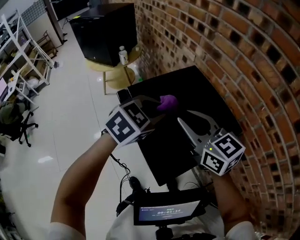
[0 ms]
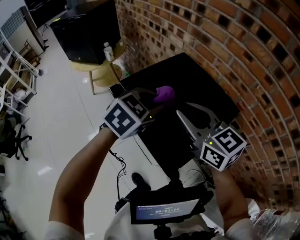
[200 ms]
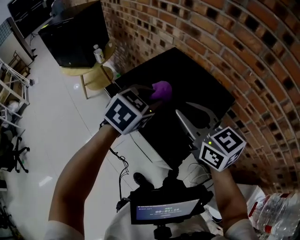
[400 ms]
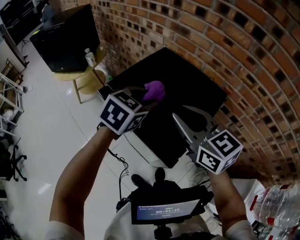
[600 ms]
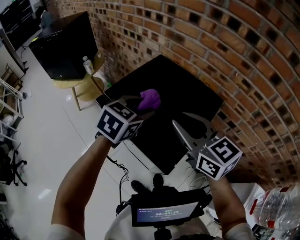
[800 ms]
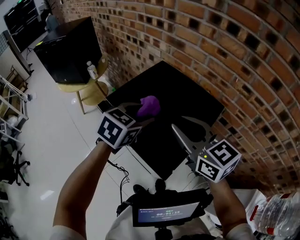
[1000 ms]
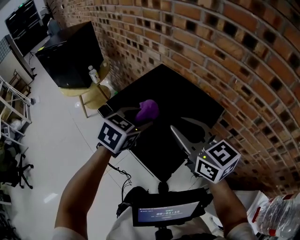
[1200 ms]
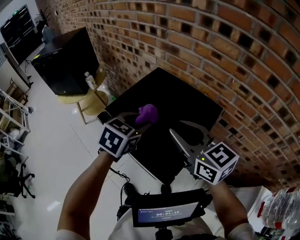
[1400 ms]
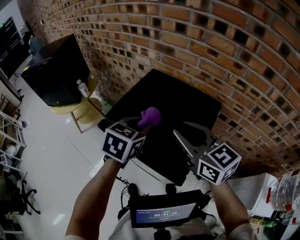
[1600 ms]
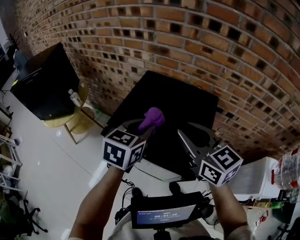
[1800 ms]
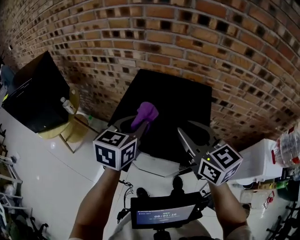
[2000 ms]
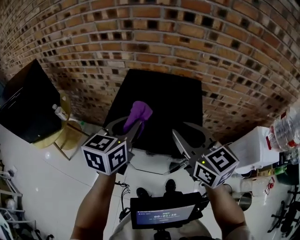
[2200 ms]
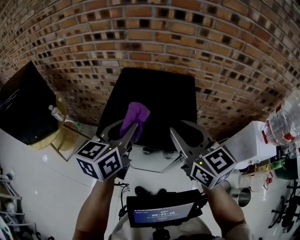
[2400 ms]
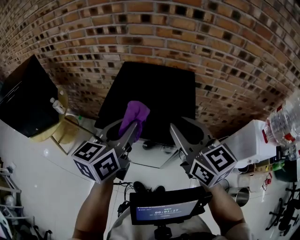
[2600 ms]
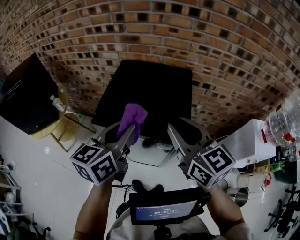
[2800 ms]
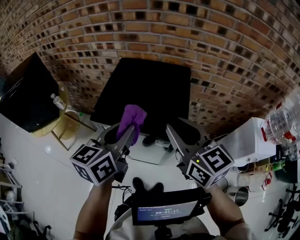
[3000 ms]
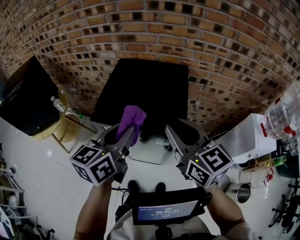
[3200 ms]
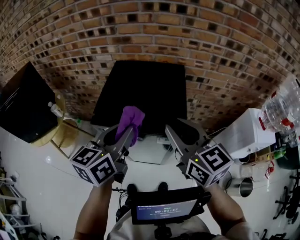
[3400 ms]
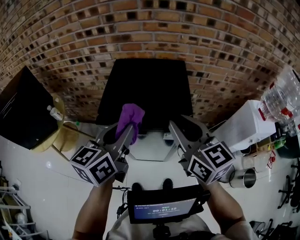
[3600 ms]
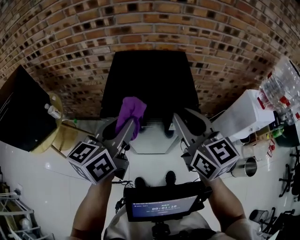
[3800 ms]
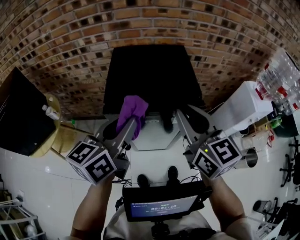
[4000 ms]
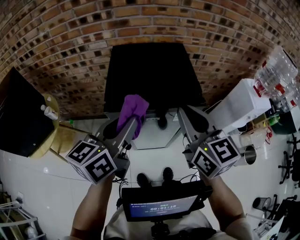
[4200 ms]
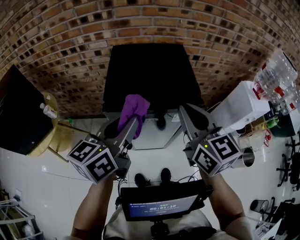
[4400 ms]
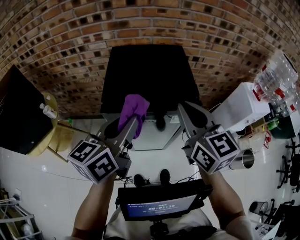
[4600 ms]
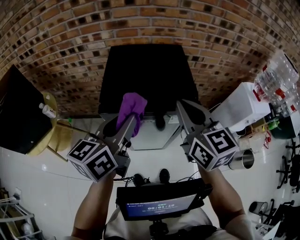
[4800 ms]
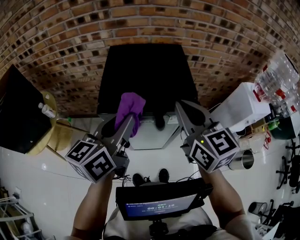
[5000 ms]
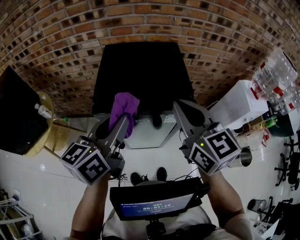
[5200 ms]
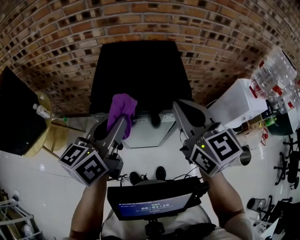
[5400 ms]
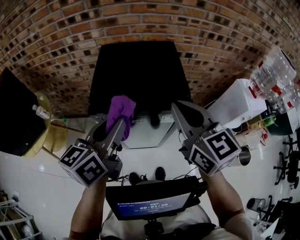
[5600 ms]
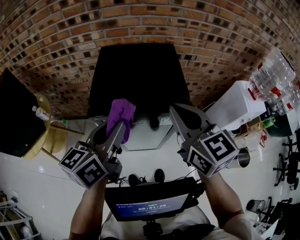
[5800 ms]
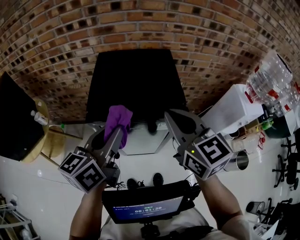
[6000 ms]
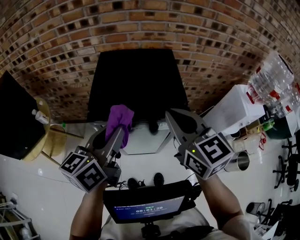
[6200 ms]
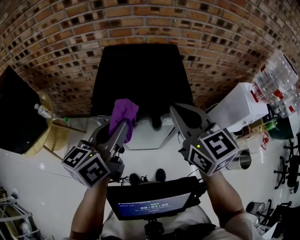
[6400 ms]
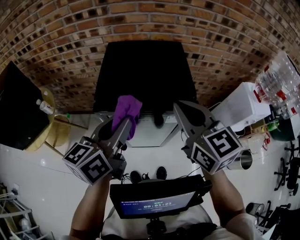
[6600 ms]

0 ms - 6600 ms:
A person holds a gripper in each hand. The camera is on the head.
0 ms - 1600 ms: The right gripper changes its angle by about 30 degrees. Meanwhile the left gripper opens, then closes once more.
1600 ms - 3200 ms: The right gripper moves roughly 15 cm, and rotates approximately 30 degrees; the left gripper shifts by some 15 cm, and changes its angle by roughly 30 degrees.
3200 ms - 5000 ms: The left gripper shifts approximately 5 cm to the left.
5000 ms - 6600 ms: The grippers move only a little.

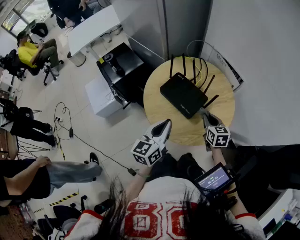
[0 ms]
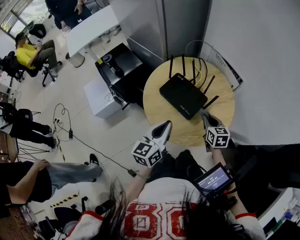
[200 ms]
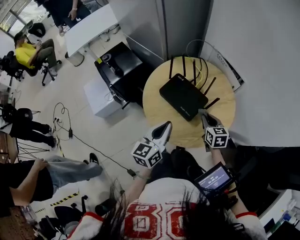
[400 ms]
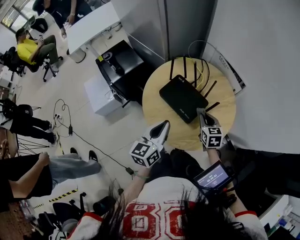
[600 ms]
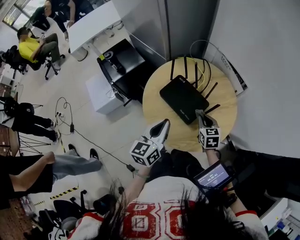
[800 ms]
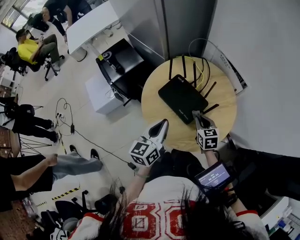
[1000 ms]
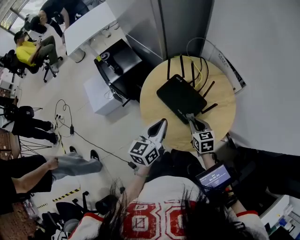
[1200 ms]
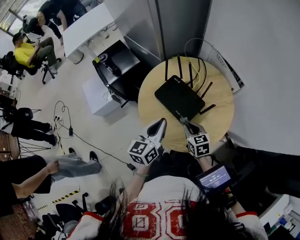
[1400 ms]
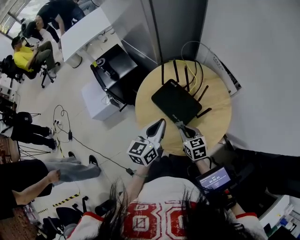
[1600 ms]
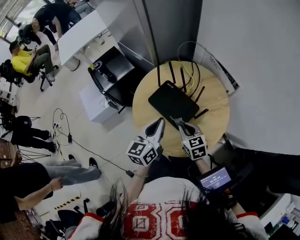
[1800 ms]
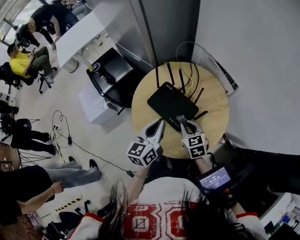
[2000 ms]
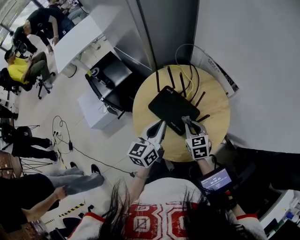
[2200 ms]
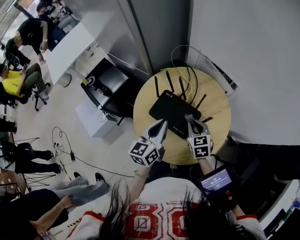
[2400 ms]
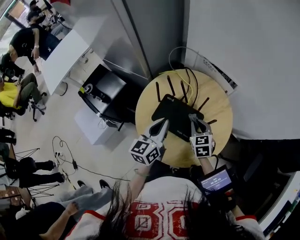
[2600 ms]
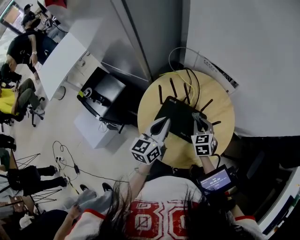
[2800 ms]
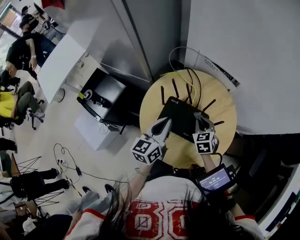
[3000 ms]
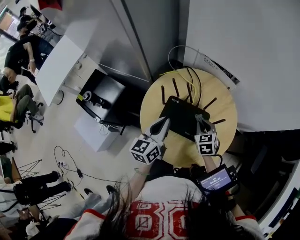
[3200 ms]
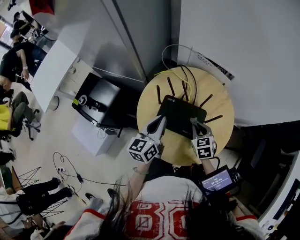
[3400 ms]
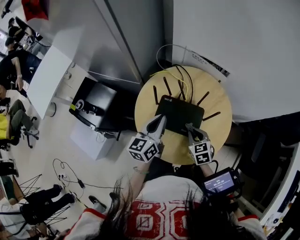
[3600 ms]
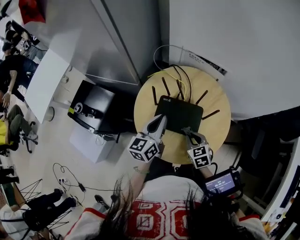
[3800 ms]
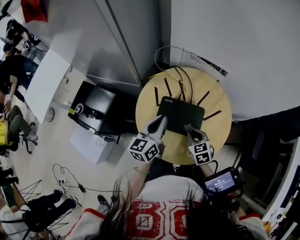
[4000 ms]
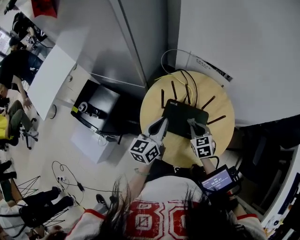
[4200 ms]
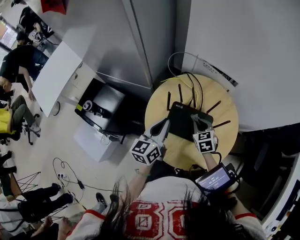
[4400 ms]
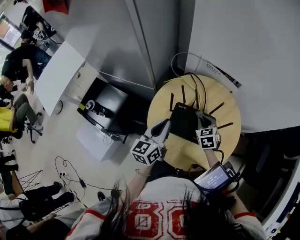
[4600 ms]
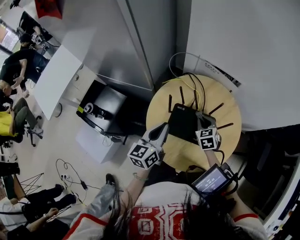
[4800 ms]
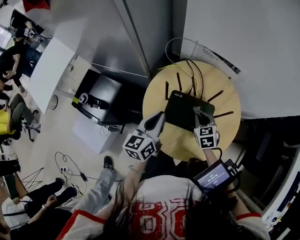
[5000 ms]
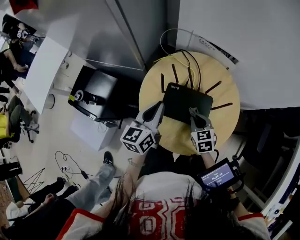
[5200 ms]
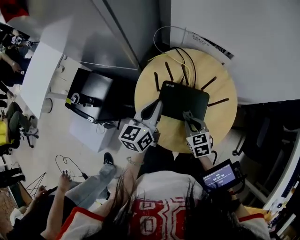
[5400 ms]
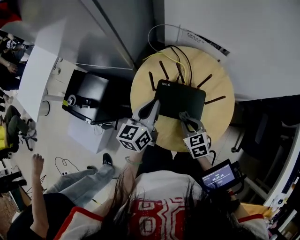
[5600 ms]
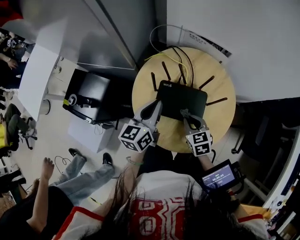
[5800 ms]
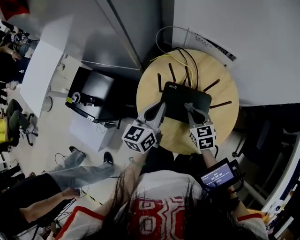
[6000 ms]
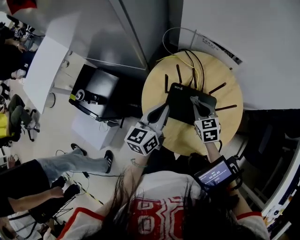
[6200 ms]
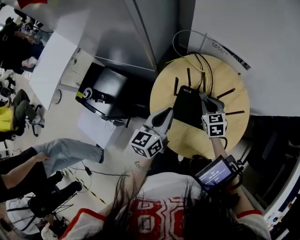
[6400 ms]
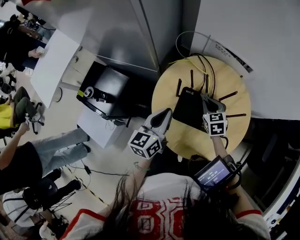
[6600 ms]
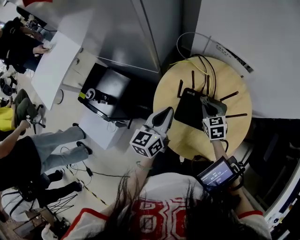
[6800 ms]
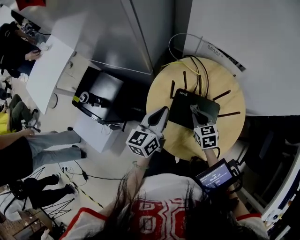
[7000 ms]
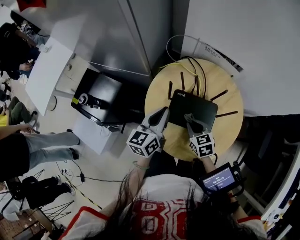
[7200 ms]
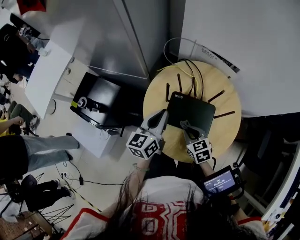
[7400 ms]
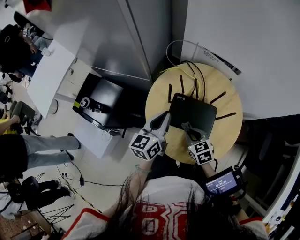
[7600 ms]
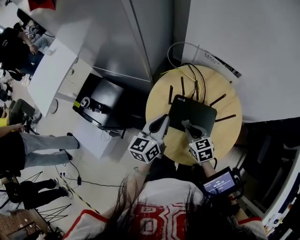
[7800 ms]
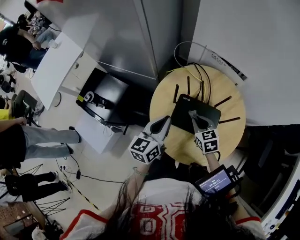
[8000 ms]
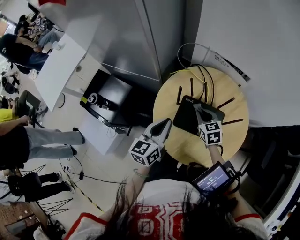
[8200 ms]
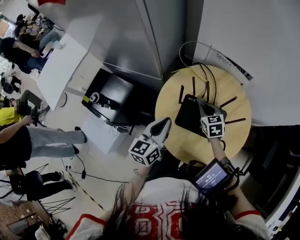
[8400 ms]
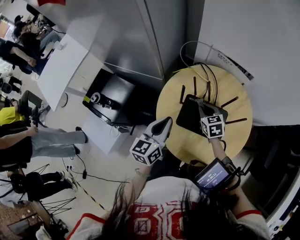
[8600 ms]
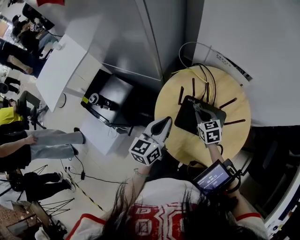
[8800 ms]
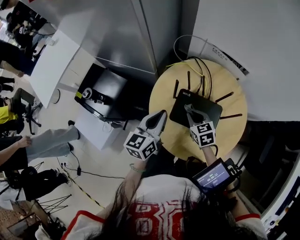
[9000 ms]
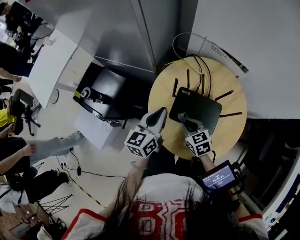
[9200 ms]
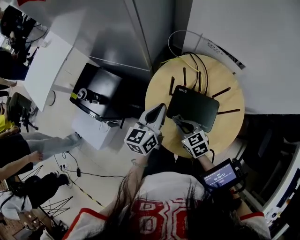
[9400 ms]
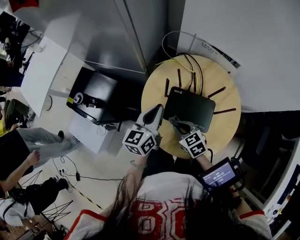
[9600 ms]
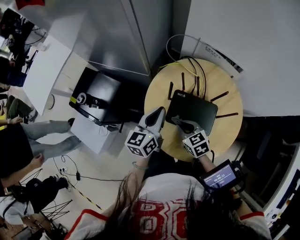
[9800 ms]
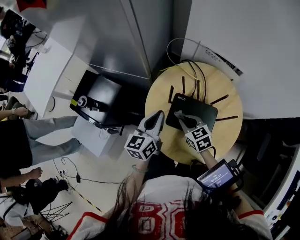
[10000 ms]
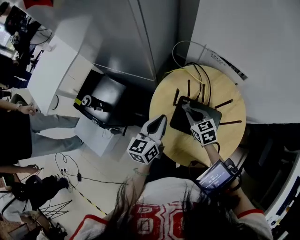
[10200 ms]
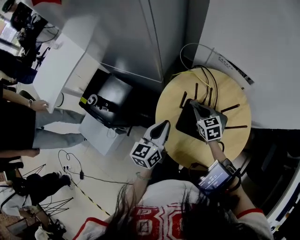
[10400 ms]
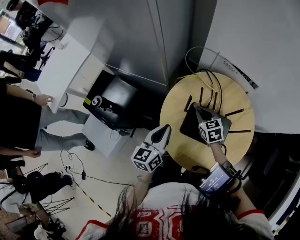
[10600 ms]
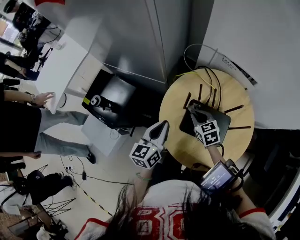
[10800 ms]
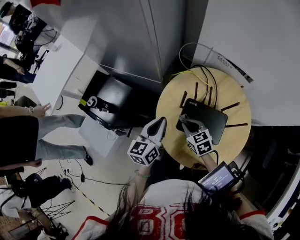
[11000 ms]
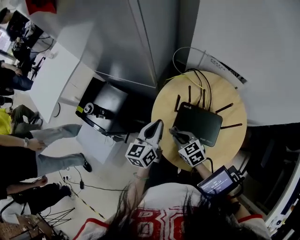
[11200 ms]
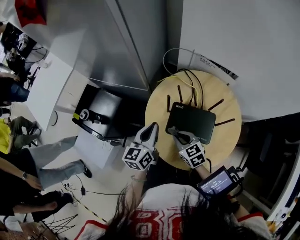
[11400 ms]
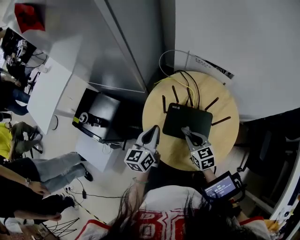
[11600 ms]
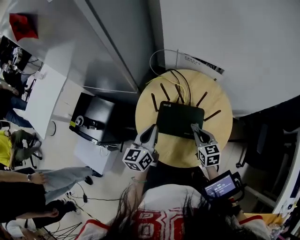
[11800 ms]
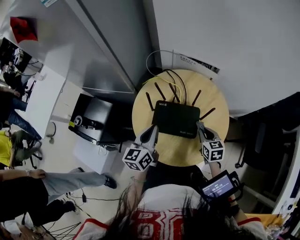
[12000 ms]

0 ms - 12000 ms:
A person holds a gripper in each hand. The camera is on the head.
0 ms - 1600 ms: The left gripper is displaced forward by approximately 5 cm, while the right gripper travels to the left by approximately 10 cm.
1600 ms - 3000 ms: The right gripper shifts by some 15 cm, and turns by roughly 40 degrees, while the left gripper ends up approximately 10 cm from where it was, and turns by roughly 20 degrees.
3000 ms - 4400 ms: The right gripper goes backward and returns, approximately 10 cm each way.
6000 ms - 7600 ms: The right gripper ends up some 5 cm from where it was.
7600 ms - 9000 ms: The right gripper shifts some 10 cm forward.
9000 ms - 10400 ms: The right gripper is displaced forward by approximately 5 cm.
10400 ms - 12000 ms: The right gripper is displaced to the right and backward by some 20 cm, and swivels about 20 degrees. The left gripper shifts approximately 5 cm to the right.

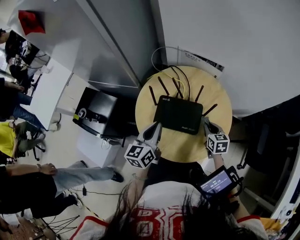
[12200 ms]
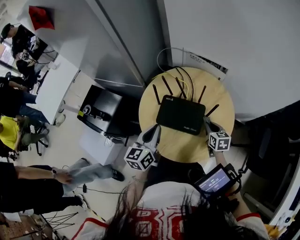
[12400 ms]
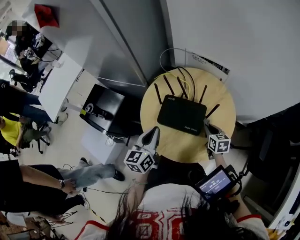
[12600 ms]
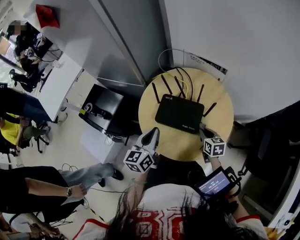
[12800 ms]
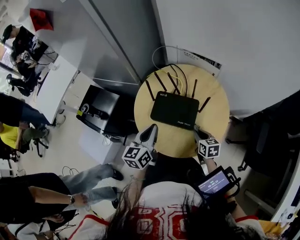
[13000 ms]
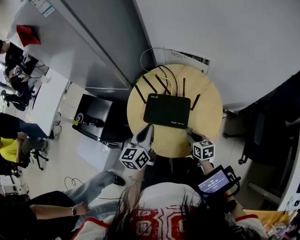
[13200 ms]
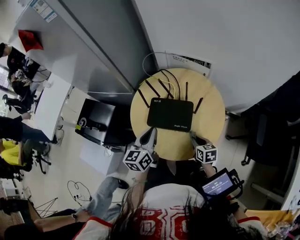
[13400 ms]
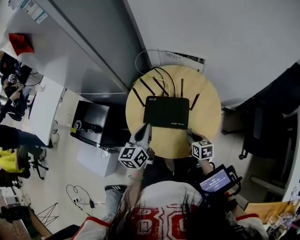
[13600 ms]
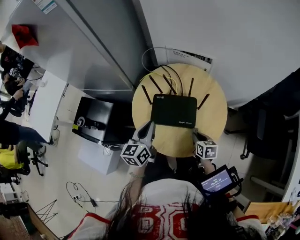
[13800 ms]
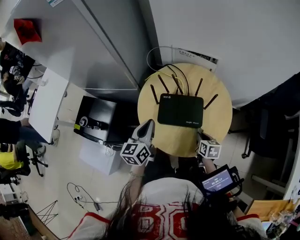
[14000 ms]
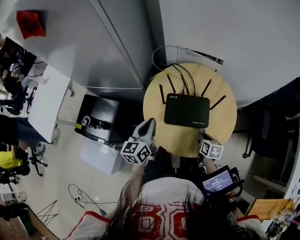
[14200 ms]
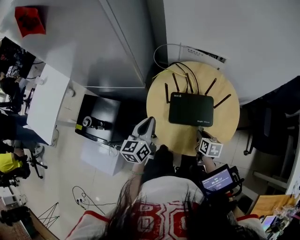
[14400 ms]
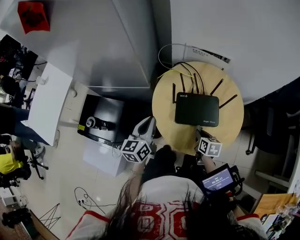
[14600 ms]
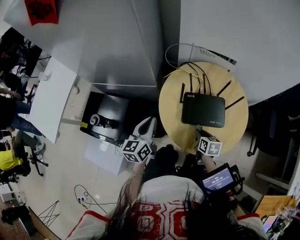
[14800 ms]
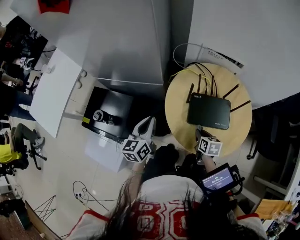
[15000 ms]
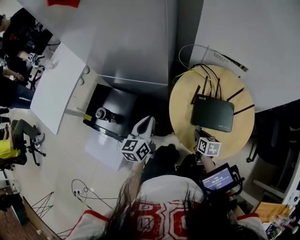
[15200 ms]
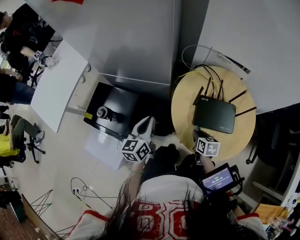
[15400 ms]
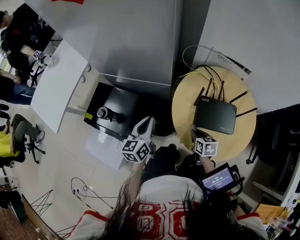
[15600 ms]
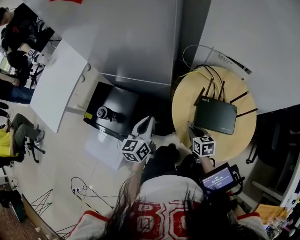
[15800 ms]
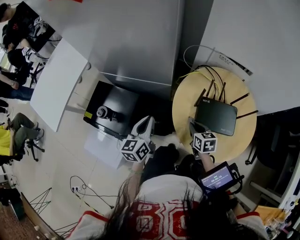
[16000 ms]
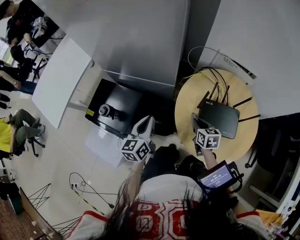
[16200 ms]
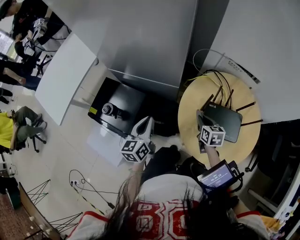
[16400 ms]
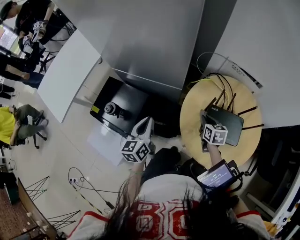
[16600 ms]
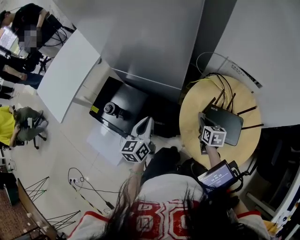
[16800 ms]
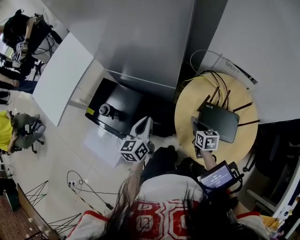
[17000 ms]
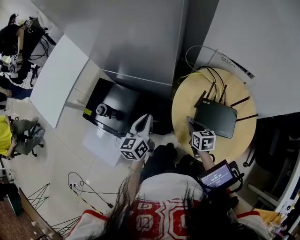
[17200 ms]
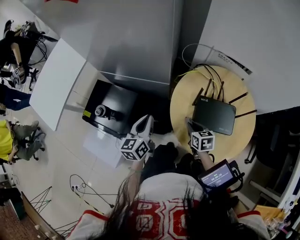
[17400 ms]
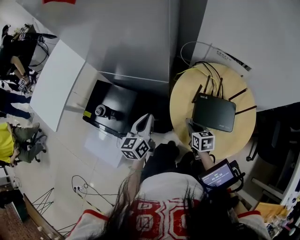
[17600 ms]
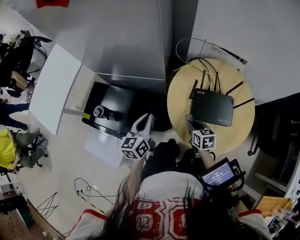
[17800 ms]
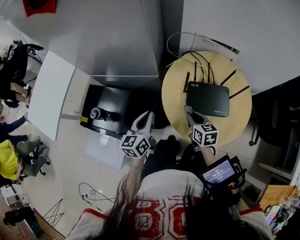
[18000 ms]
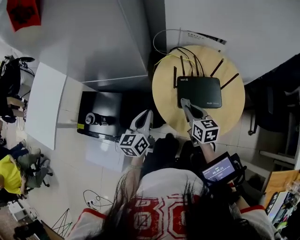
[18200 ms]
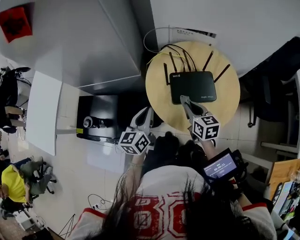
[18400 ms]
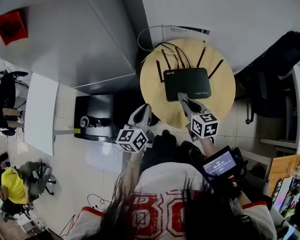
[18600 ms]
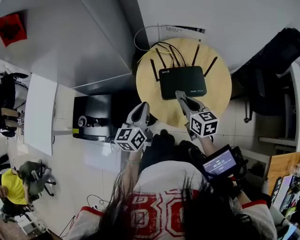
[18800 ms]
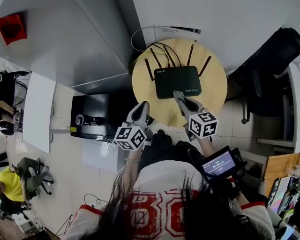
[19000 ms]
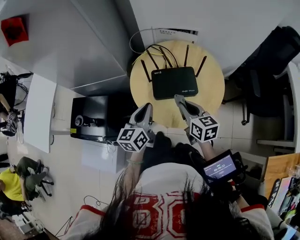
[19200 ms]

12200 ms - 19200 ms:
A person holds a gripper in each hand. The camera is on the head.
12200 ms - 13600 ms: The right gripper travels backward and to the left by about 10 cm.
13600 ms - 15000 ms: The grippers both shift to the left by about 20 cm.
15000 ms - 16400 ms: The right gripper goes about 15 cm forward and to the left; the left gripper shifts approximately 5 cm to the left.
16400 ms - 17800 ms: The right gripper travels backward by about 10 cm.
17800 ms - 19200 ms: The right gripper is displaced upward, to the right and backward by about 20 cm, and changes its angle by some 20 degrees. The left gripper goes roughly 15 cm to the right.
